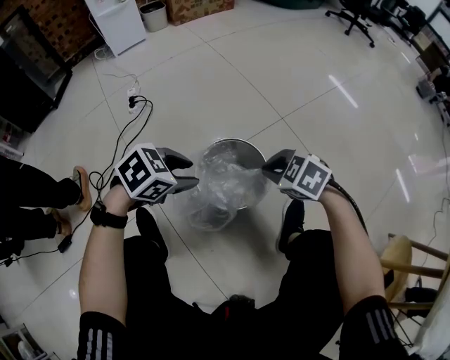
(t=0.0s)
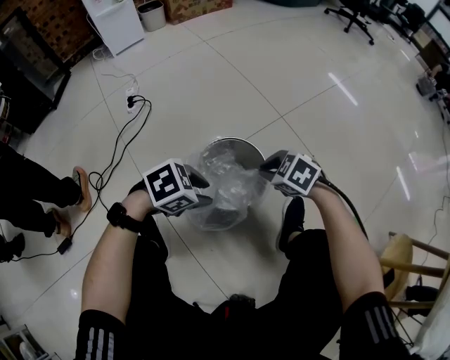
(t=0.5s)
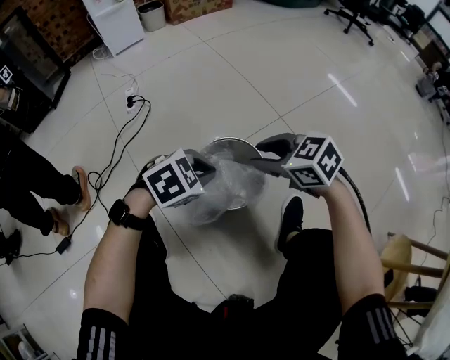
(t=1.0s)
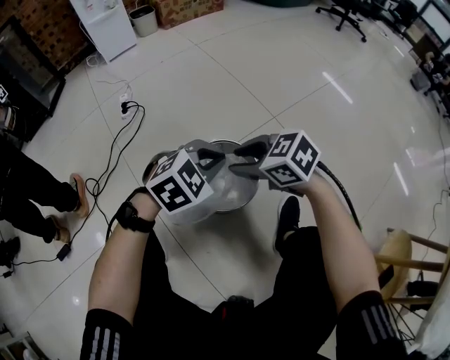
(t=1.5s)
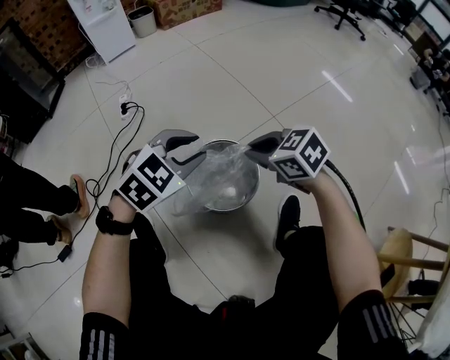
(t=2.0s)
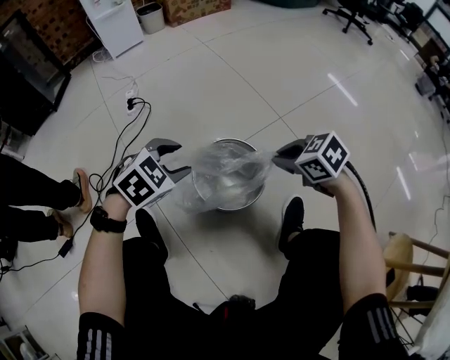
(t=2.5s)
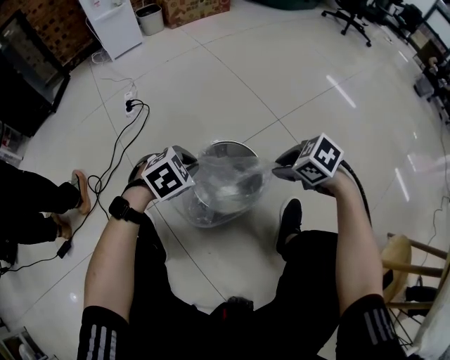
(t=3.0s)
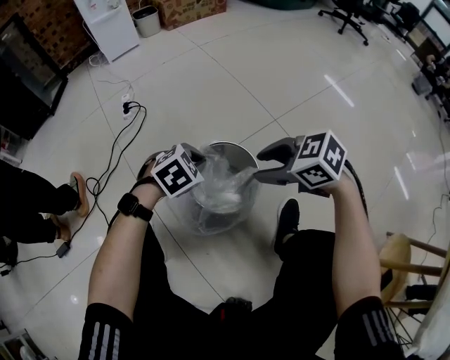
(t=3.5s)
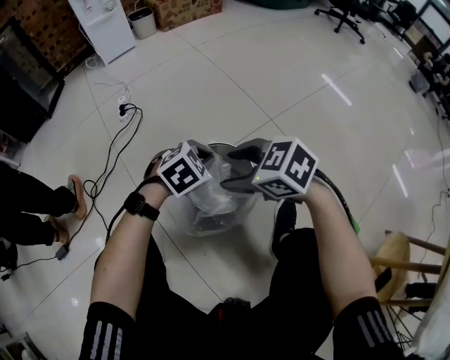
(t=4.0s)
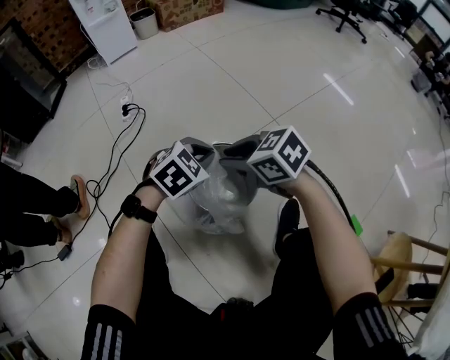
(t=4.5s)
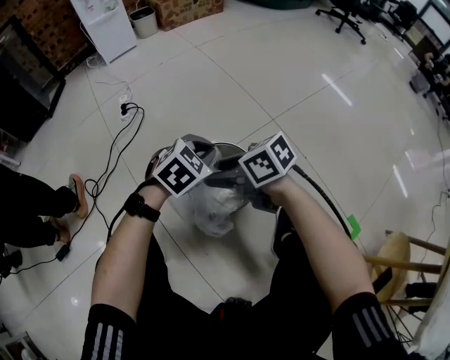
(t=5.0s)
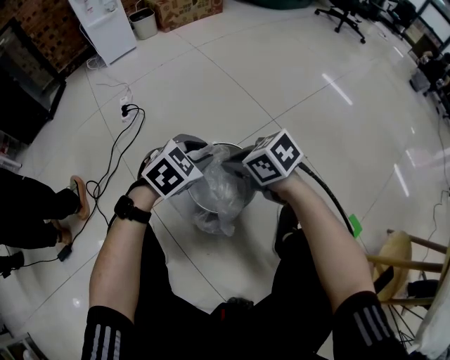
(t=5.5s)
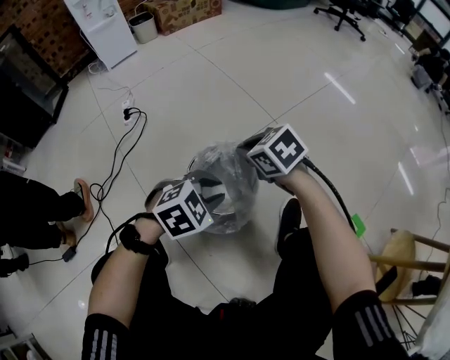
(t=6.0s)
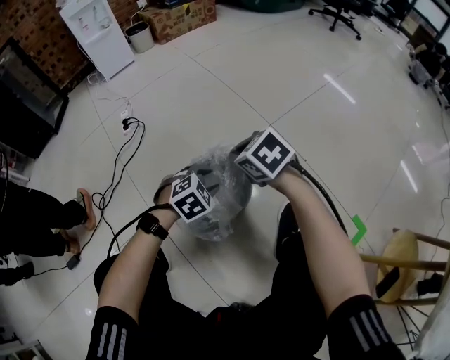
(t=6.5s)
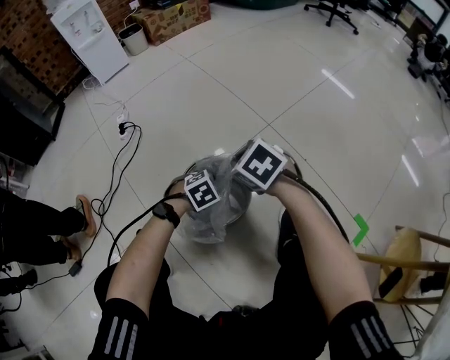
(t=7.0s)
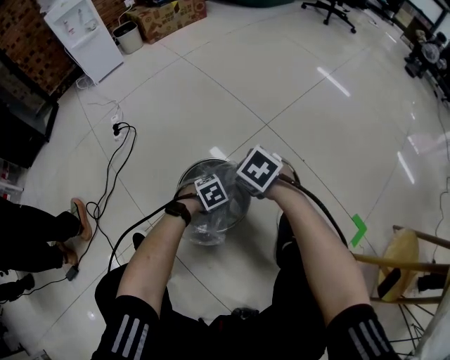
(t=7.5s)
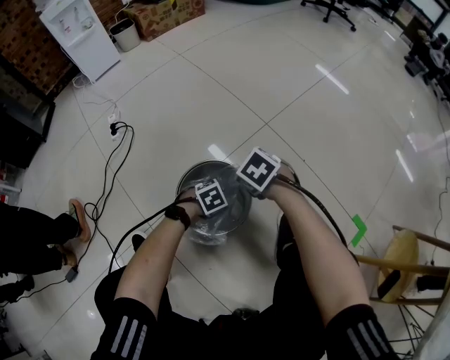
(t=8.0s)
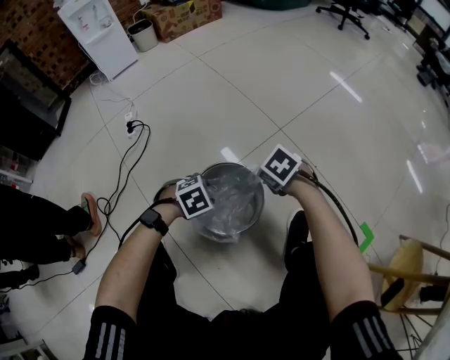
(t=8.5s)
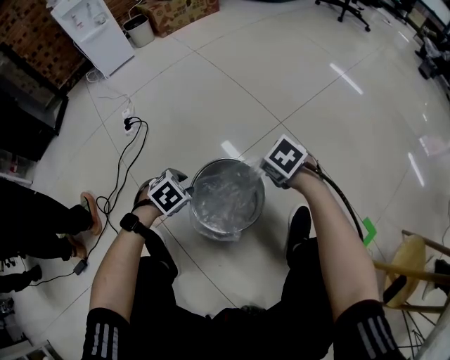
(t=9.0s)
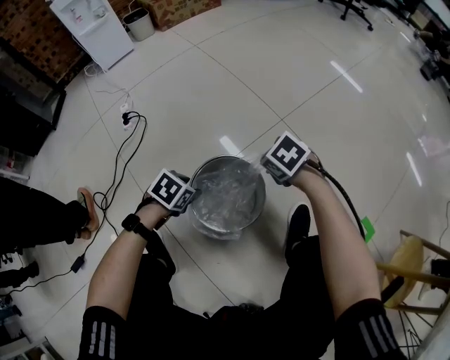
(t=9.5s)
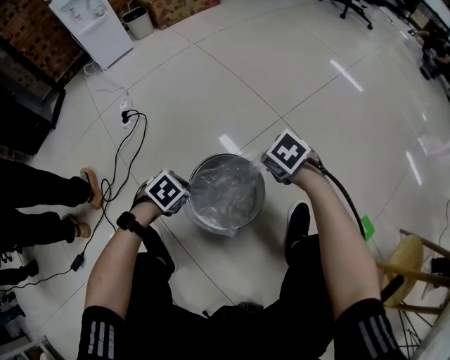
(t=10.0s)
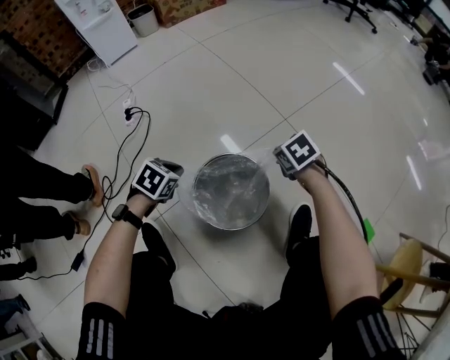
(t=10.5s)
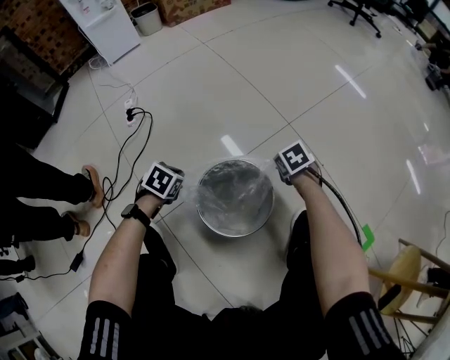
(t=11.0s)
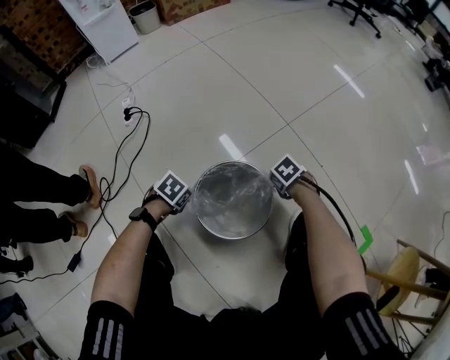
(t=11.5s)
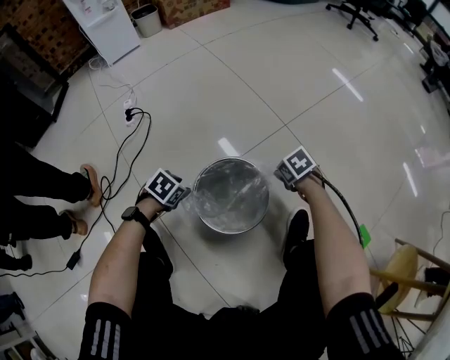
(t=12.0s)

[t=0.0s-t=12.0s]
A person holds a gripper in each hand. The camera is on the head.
t=0.0s to t=2.0s: The left gripper shifts by approximately 10 cm, rotates roughly 30 degrees, and closes, then reopens. The right gripper travels upward by roughly 5 cm, changes its angle by roughly 20 degrees, and opens, then closes again.
t=2.0s to t=4.0s: The right gripper travels downward and back again, approximately 5 cm each way, and opens its fingers; the left gripper is displaced downward by some 10 cm, and closes its fingers.
t=4.0s to t=6.0s: The left gripper moves roughly 10 cm. The right gripper shifts by approximately 10 cm, turns by about 20 degrees, and closes.
t=6.0s to t=8.0s: The left gripper travels downward by some 25 cm, and rotates roughly 20 degrees. Meanwhile the right gripper heads downward, covering some 10 cm, and rotates about 20 degrees.
t=8.0s to t=10.0s: The left gripper moves roughly 20 cm, changes its angle by about 20 degrees, and closes.
t=10.0s to t=12.0s: The left gripper opens up. Meanwhile the right gripper moves downward, about 10 cm, and opens its fingers.

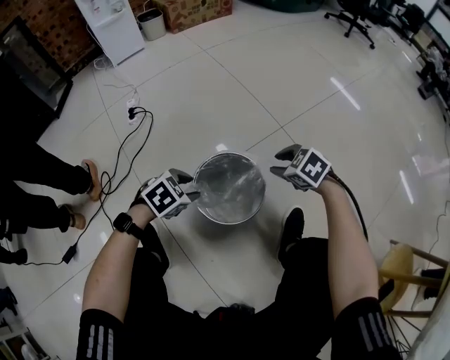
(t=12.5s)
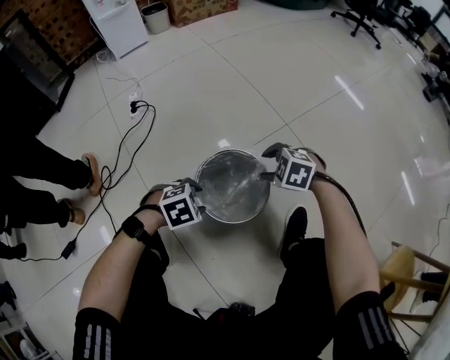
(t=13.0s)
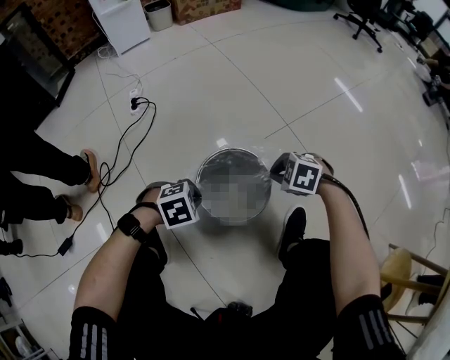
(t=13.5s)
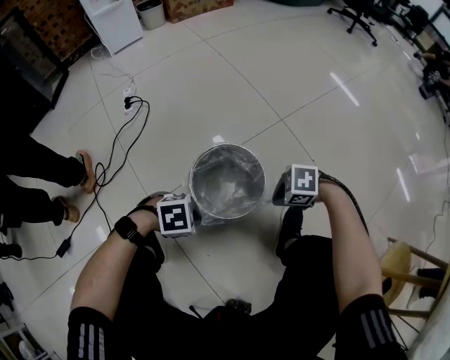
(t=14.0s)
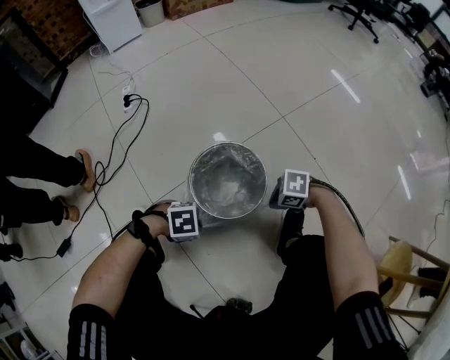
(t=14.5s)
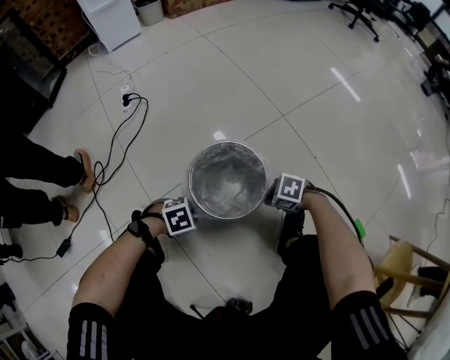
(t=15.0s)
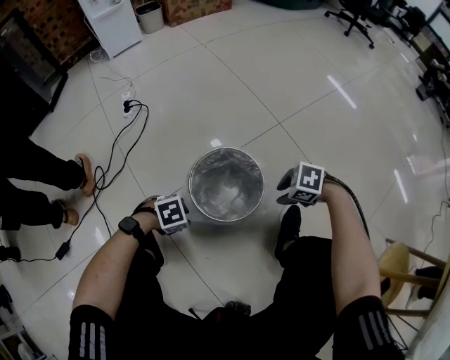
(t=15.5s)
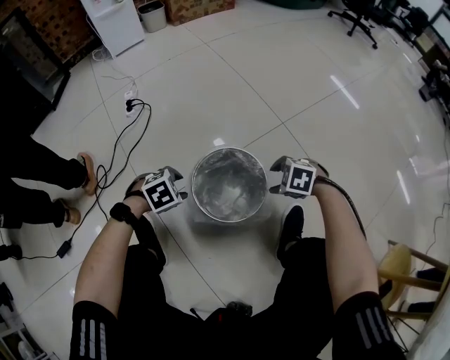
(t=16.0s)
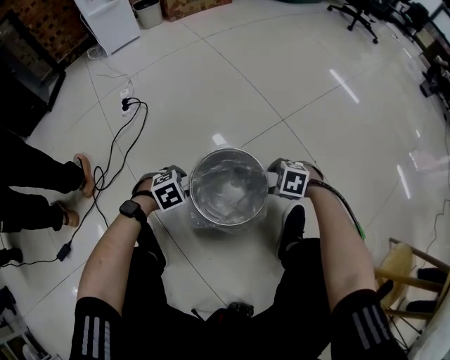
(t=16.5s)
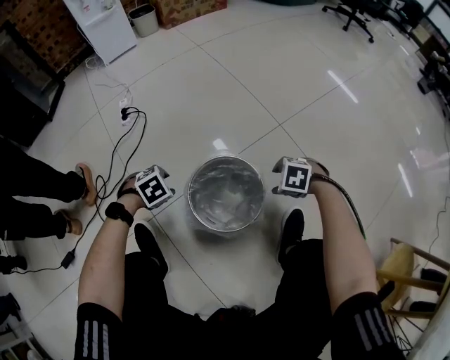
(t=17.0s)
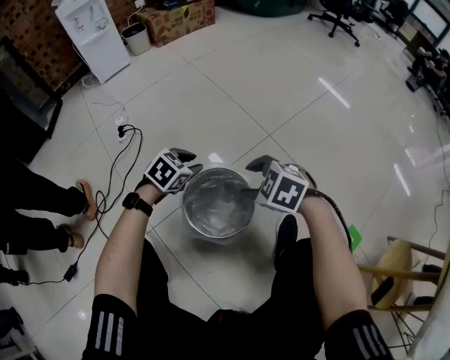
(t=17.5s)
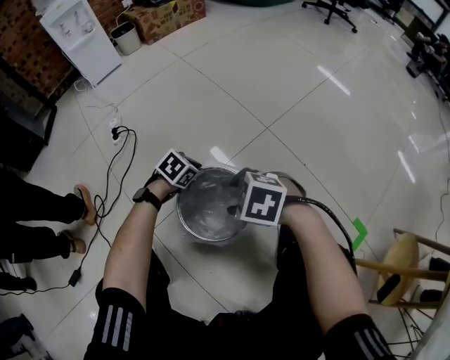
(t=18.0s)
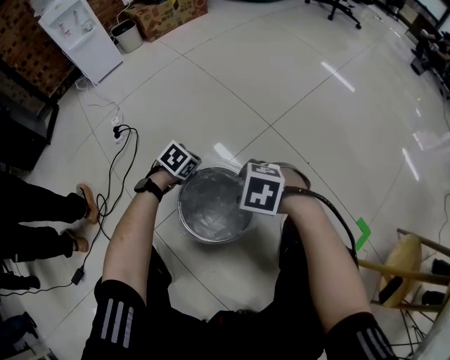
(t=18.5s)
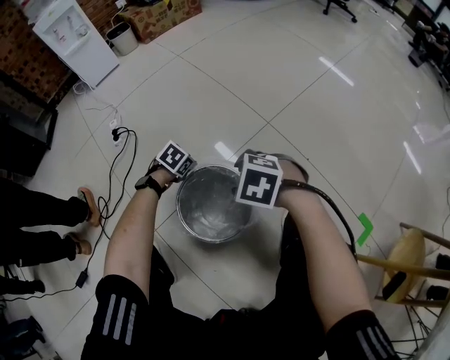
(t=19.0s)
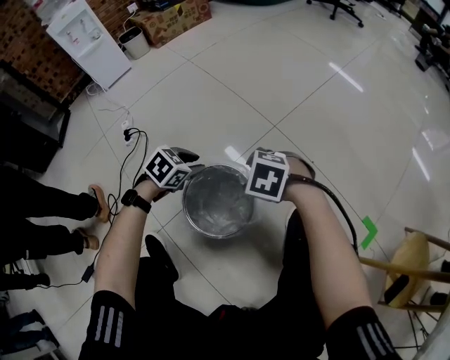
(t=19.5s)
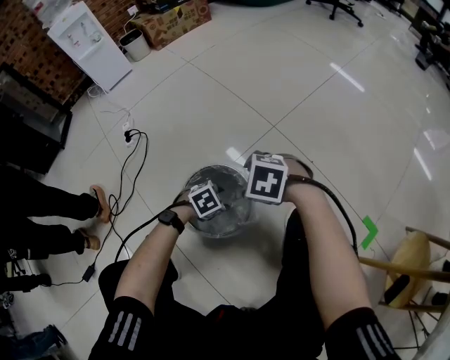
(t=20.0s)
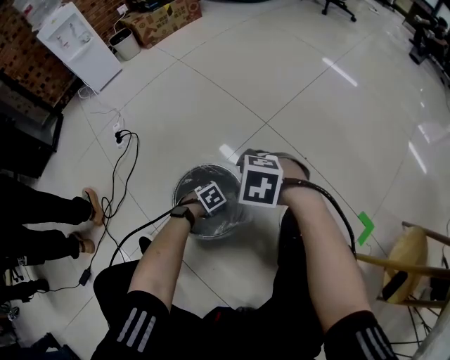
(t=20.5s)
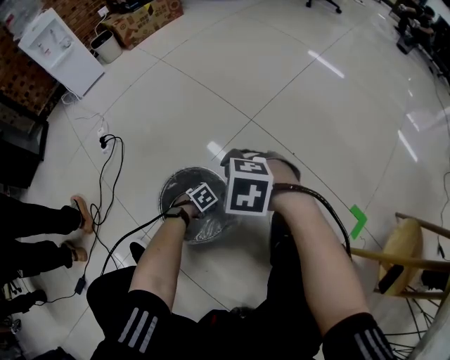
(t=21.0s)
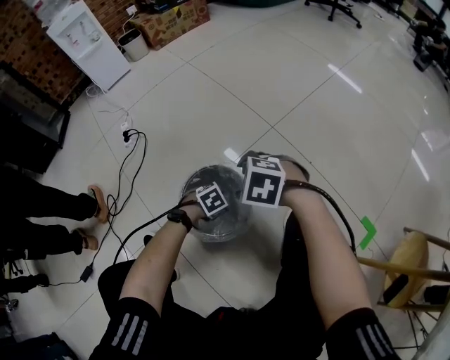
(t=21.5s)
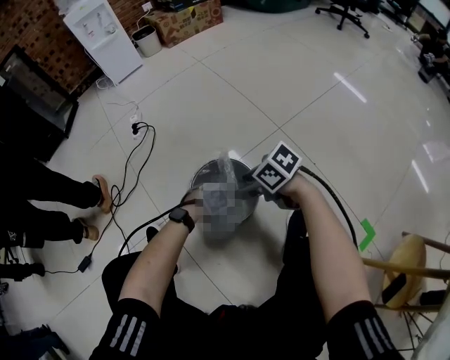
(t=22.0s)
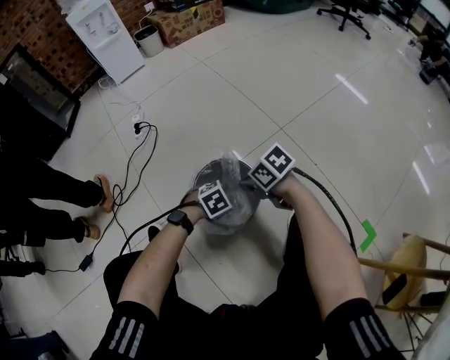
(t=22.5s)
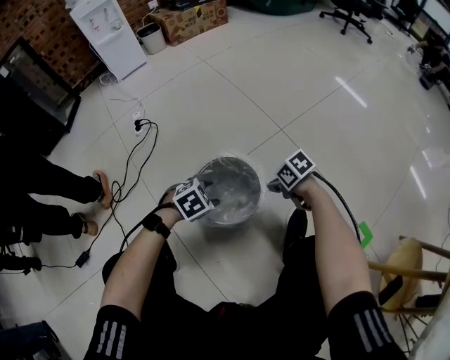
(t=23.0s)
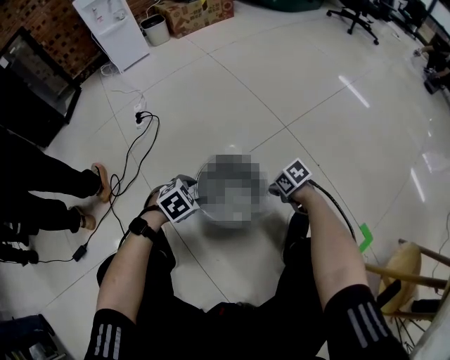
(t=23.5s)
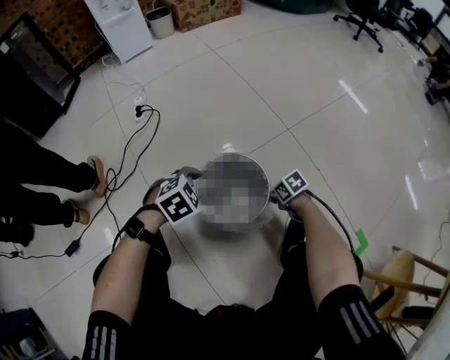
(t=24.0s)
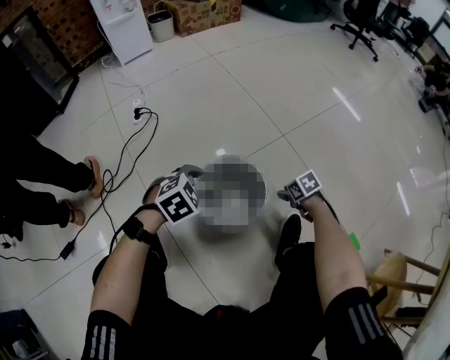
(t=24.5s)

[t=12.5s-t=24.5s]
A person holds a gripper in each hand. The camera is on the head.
t=12.5s to t=14.5s: The left gripper moves about 15 cm, rotates roughly 40 degrees, and closes, while the right gripper moves roughly 20 cm, swivels about 40 degrees, and closes.
t=14.5s to t=16.5s: The right gripper moves about 5 cm upward and comes back, rotates approximately 20 degrees, and opens up. The left gripper changes place by about 15 cm, rotates roughly 30 degrees, and opens its fingers.
t=16.5s to t=18.5s: The right gripper heads upward, covering approximately 15 cm; the left gripper reaches roughly 10 cm upward, then returns, turns by roughly 20 degrees, and closes.
t=18.5s to t=20.5s: The left gripper moves approximately 20 cm, rotates roughly 20 degrees, and opens up.
t=20.5s to t=22.5s: The right gripper travels downward by approximately 5 cm, rotates some 40 degrees, and closes up. Meanwhile the left gripper heads upward, covering about 10 cm, and changes its angle by roughly 20 degrees.
t=22.5s to t=24.5s: The left gripper shifts roughly 15 cm upward, while the right gripper moves roughly 20 cm, changes its angle by some 30 degrees, and opens its fingers.

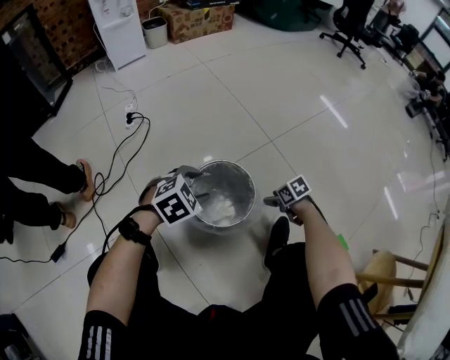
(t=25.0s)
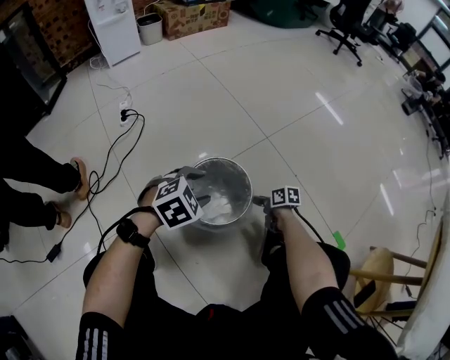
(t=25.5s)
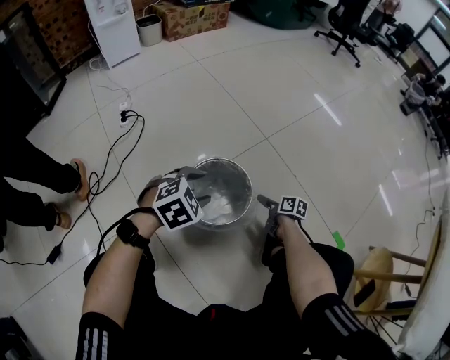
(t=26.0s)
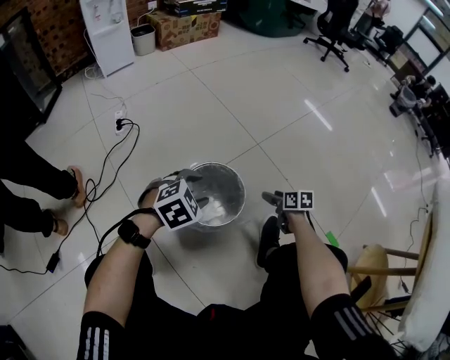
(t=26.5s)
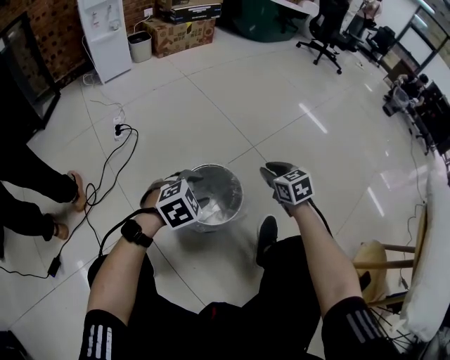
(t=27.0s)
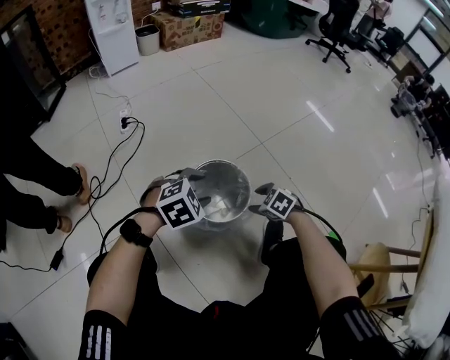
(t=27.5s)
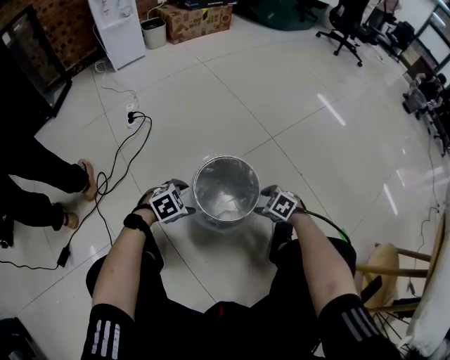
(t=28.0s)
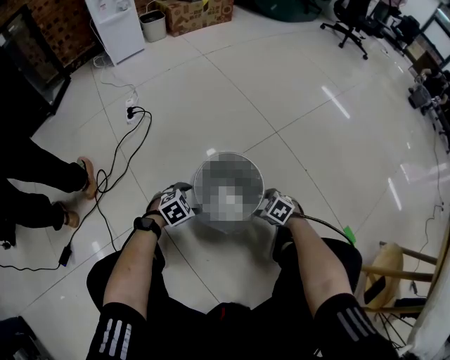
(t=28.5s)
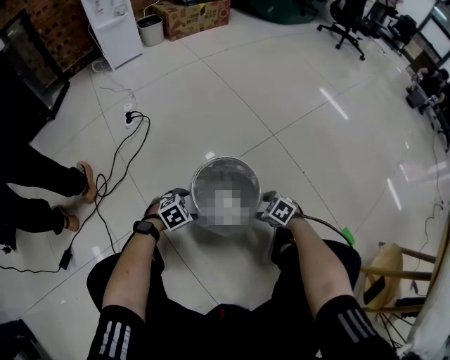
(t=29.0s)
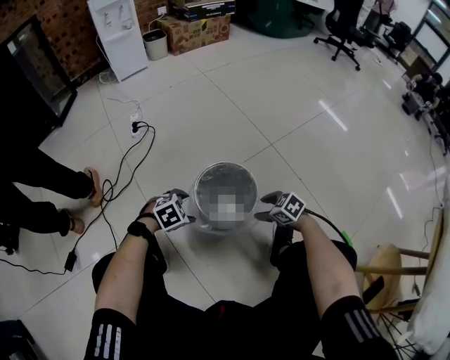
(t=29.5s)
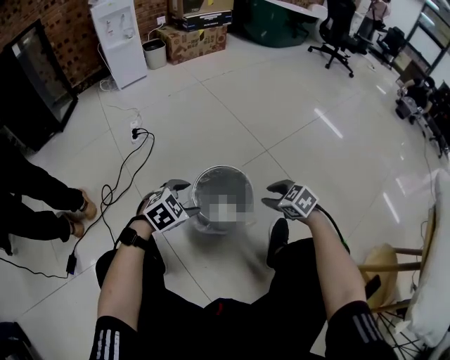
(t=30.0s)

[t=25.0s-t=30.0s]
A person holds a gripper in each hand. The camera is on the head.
t=25.0s to t=27.5s: The right gripper goes upward and returns, approximately 20 cm each way, swivels about 40 degrees, and closes, then opens again.
t=27.5s to t=30.0s: The left gripper reaches about 20 cm downward, then returns, while the right gripper heads upward, covering roughly 10 cm.
